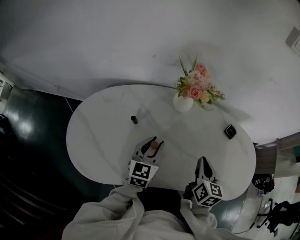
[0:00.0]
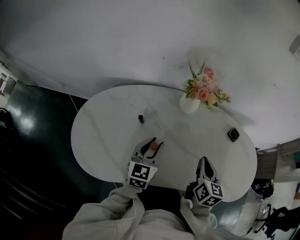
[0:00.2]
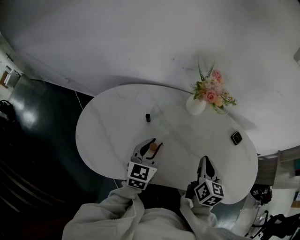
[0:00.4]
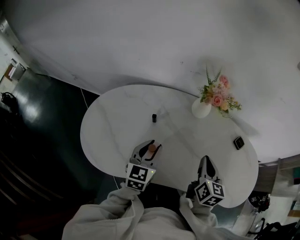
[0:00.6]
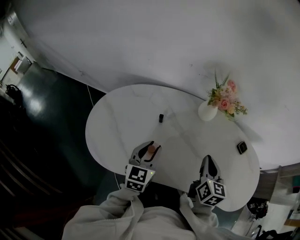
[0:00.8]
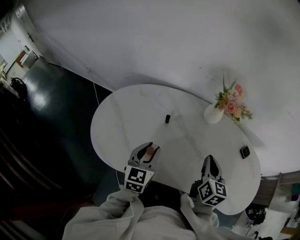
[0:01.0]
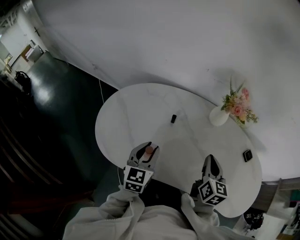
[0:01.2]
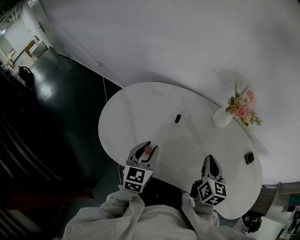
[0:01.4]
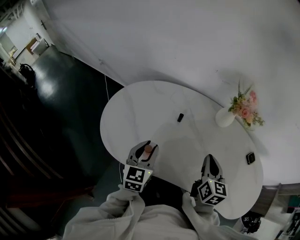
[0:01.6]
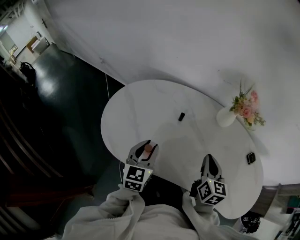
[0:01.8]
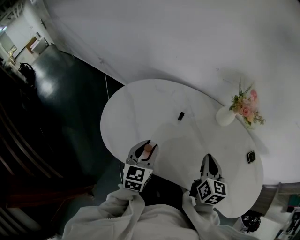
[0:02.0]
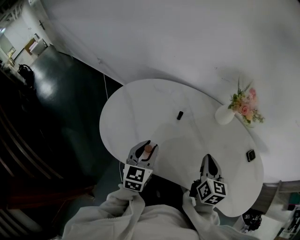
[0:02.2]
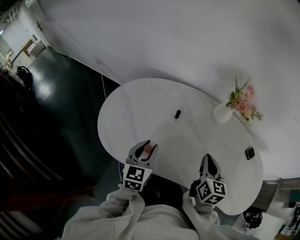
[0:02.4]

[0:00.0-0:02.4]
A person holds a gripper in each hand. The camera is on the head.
0:00.0 to 0:01.2: The left gripper heads to the left and backward, covering some 15 cm, and changes its angle by some 20 degrees, while the right gripper travels to the left by about 10 cm.
0:01.2 to 0:02.4: The grippers move only a little.

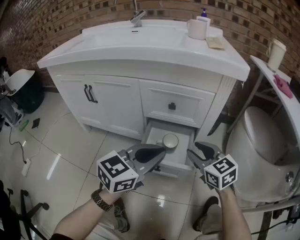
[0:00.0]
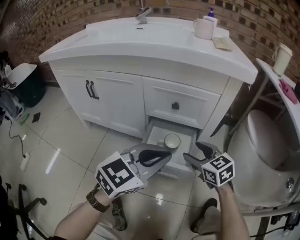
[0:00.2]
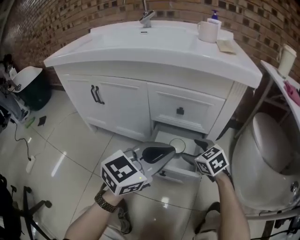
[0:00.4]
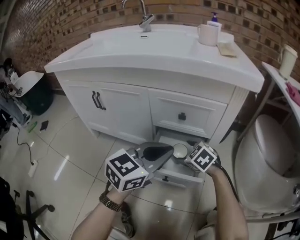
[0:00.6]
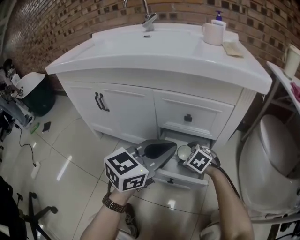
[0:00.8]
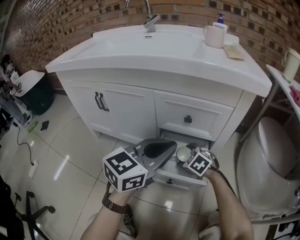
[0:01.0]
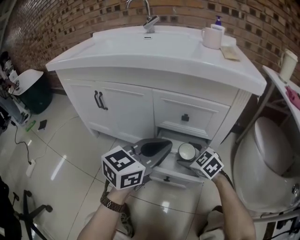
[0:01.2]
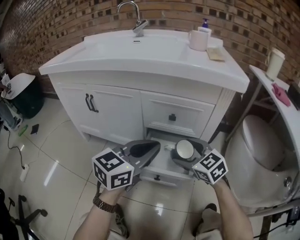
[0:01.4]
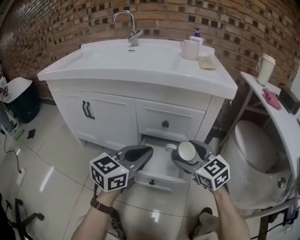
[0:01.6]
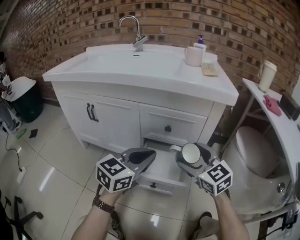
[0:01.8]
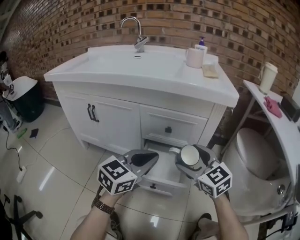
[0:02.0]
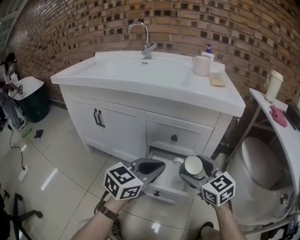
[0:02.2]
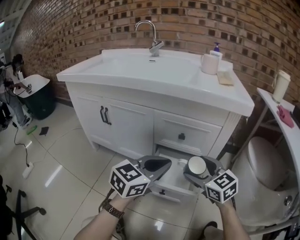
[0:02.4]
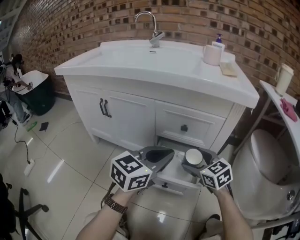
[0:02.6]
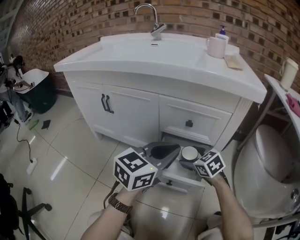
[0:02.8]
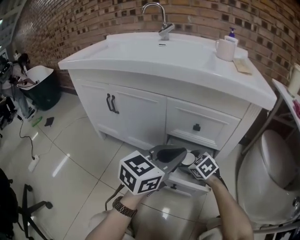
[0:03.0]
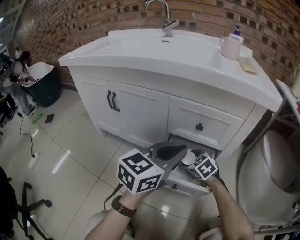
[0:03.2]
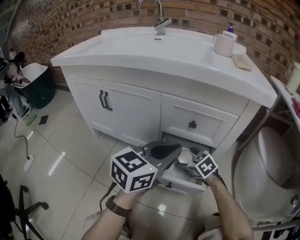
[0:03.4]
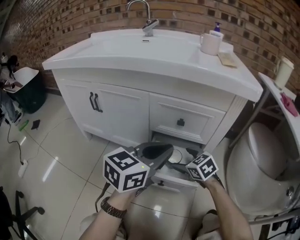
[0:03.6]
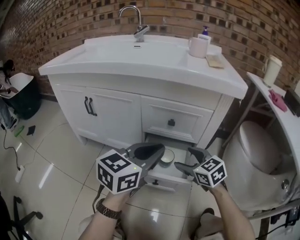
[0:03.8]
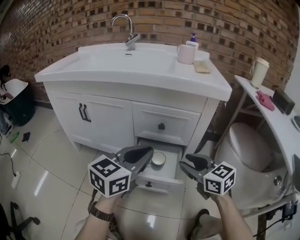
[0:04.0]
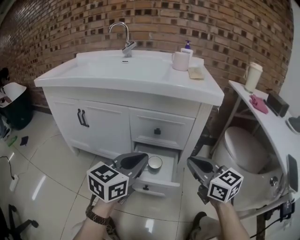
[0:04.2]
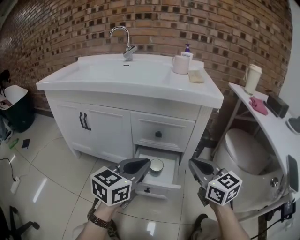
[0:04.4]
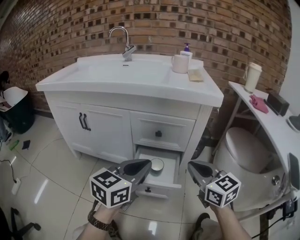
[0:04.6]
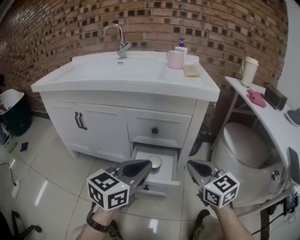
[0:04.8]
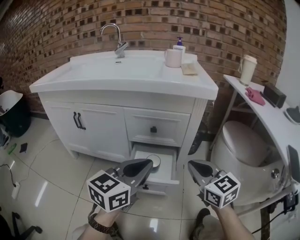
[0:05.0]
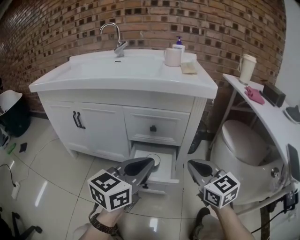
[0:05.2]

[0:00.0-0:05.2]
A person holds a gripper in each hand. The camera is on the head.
0:00.0 to 0:01.8: The right gripper goes downward and returns, approximately 15 cm each way, and opens its fingers, while the left gripper ends up some 5 cm from where it was.
0:01.8 to 0:03.4: The right gripper is displaced downward by some 20 cm, and angles its fingers downward, by some 30 degrees.
0:03.4 to 0:05.2: The left gripper moves backward, roughly 10 cm. The right gripper goes approximately 30 cm upward, to the right and backward, points its fingers about 30 degrees further upward, and closes.

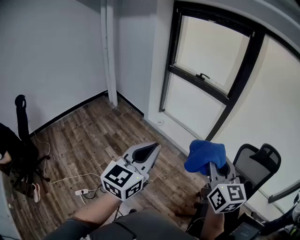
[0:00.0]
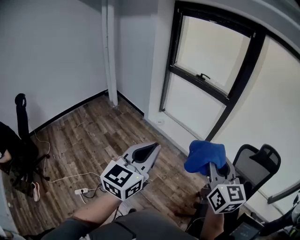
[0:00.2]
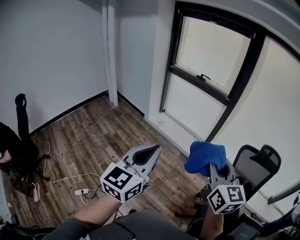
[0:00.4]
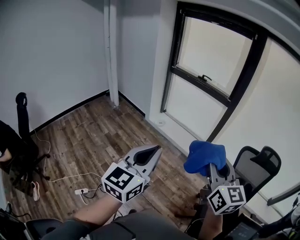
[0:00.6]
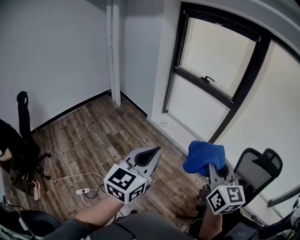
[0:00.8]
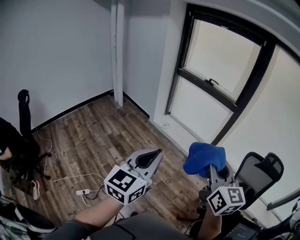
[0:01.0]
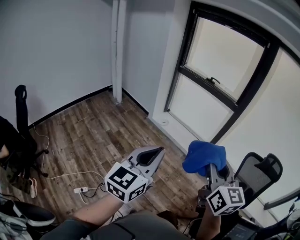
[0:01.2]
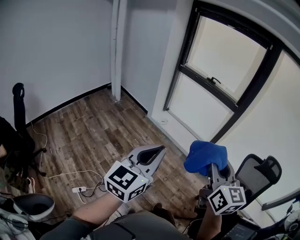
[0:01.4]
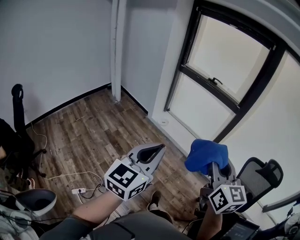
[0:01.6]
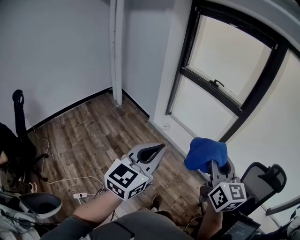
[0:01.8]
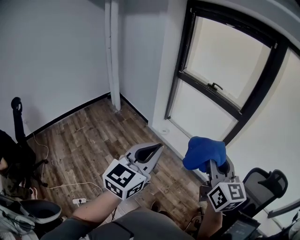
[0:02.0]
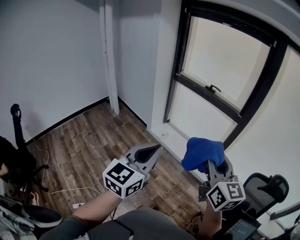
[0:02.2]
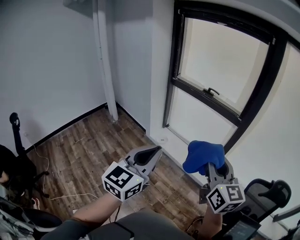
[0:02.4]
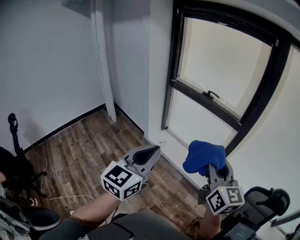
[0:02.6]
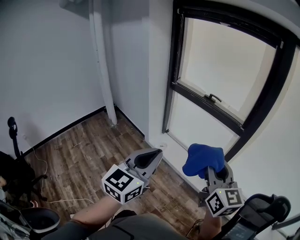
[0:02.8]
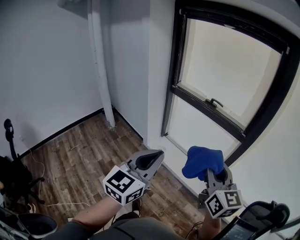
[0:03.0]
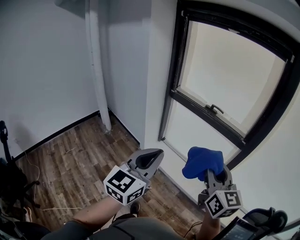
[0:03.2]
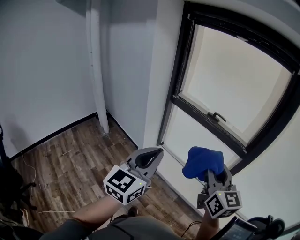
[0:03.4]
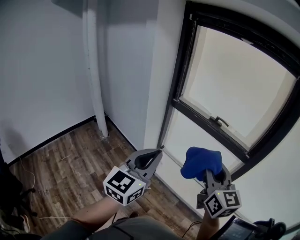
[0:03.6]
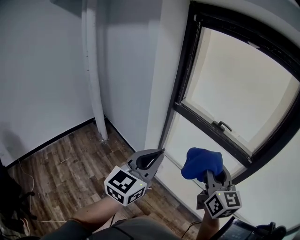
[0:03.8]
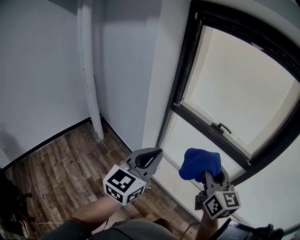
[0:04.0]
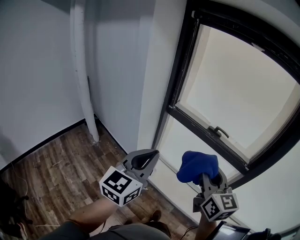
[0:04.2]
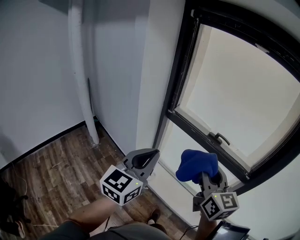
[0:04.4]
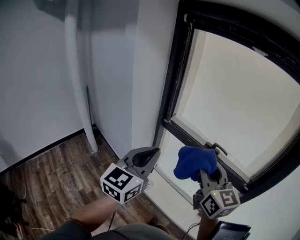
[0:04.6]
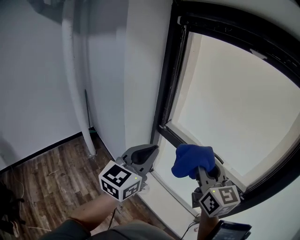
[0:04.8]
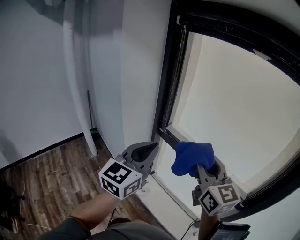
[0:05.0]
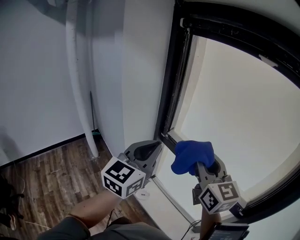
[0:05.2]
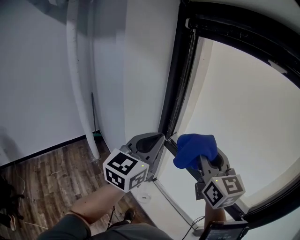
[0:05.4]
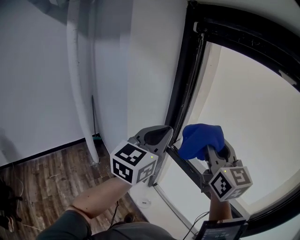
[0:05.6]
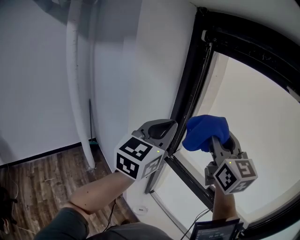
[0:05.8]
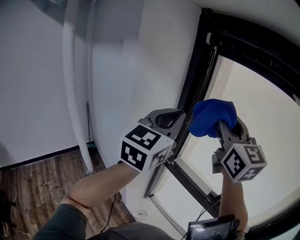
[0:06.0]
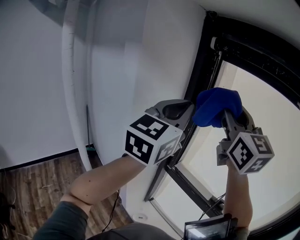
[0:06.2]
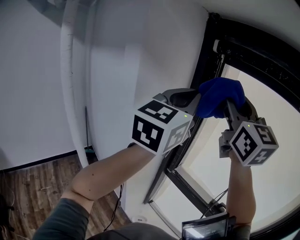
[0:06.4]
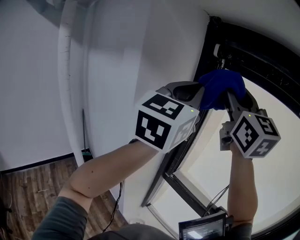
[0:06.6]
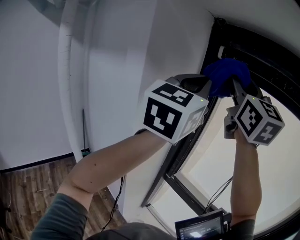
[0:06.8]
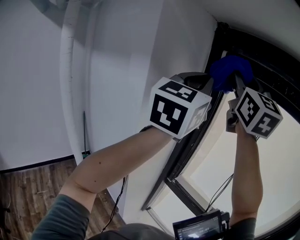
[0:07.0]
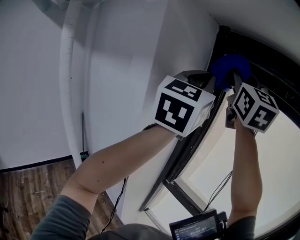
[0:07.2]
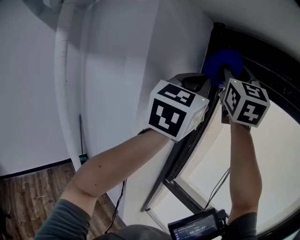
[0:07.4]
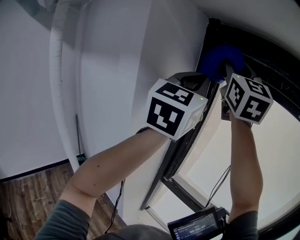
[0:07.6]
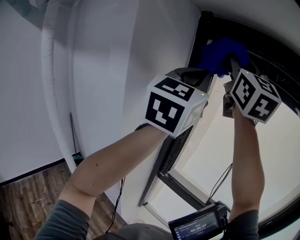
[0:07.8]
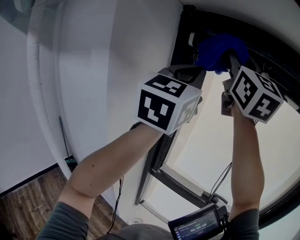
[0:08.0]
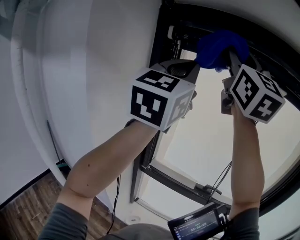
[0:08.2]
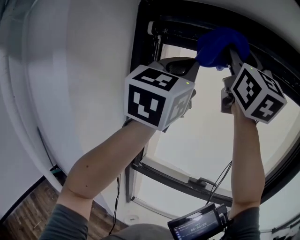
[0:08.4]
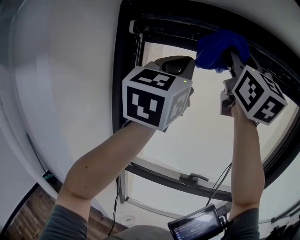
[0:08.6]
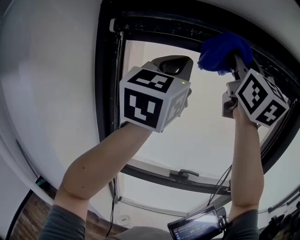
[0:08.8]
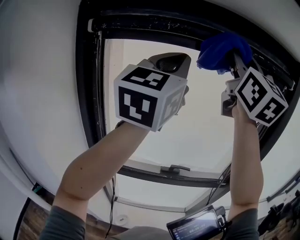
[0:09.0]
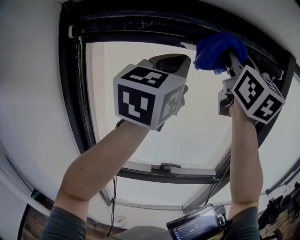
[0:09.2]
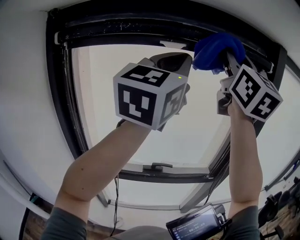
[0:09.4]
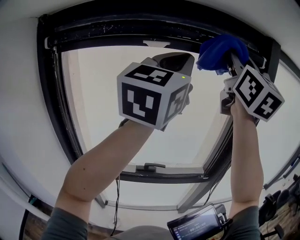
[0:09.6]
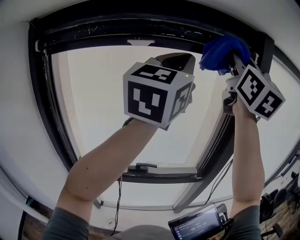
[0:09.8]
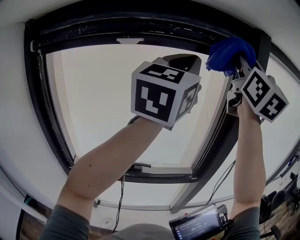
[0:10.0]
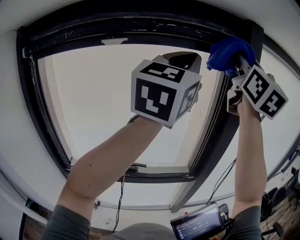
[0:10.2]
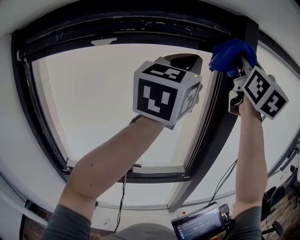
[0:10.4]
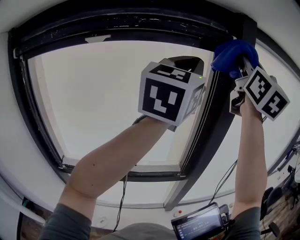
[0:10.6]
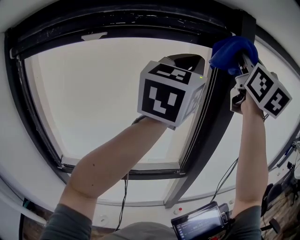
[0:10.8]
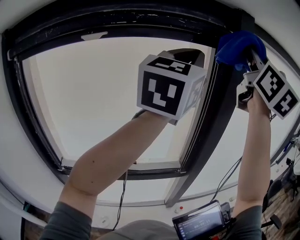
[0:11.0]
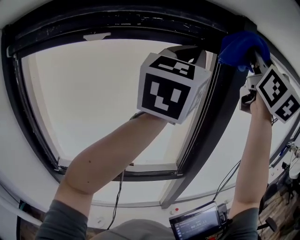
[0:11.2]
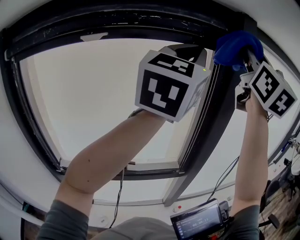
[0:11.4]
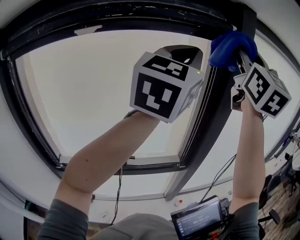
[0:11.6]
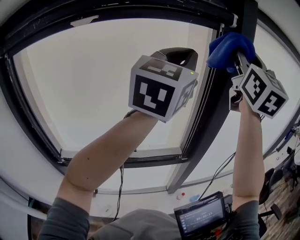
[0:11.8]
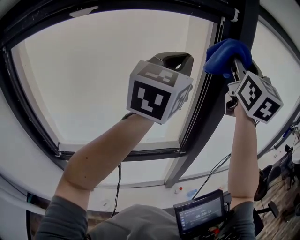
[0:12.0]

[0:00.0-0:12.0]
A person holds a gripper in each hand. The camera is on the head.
0:00.0 to 0:01.6: Both grippers move to the left and forward, approximately 10 cm.
0:01.6 to 0:03.0: Both grippers travel together forward, some 35 cm.
0:03.0 to 0:04.4: Both grippers travel together forward, approximately 35 cm.
0:04.4 to 0:06.0: The two grippers go approximately 40 cm forward and upward. The right gripper swivels about 20 degrees.
0:06.0 to 0:07.6: Both grippers move upward and forward, roughly 20 cm. The right gripper turns by some 30 degrees.
0:07.6 to 0:09.0: The right gripper moves roughly 35 cm, and swivels roughly 30 degrees; the left gripper ends up some 25 cm from where it was, and changes its angle by approximately 30 degrees.
0:09.0 to 0:10.4: Both grippers travel together to the right, approximately 35 cm.
0:10.4 to 0:12.0: Both grippers move downward, some 10 cm.

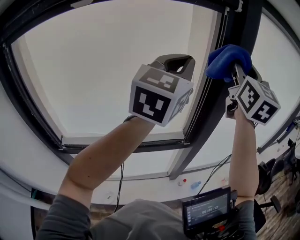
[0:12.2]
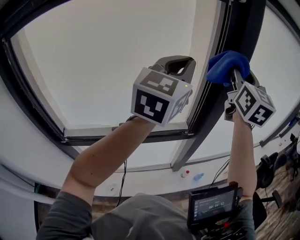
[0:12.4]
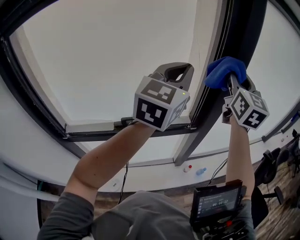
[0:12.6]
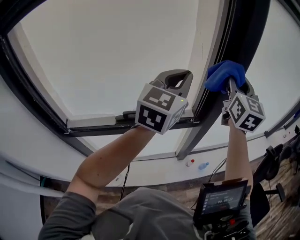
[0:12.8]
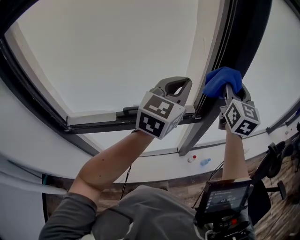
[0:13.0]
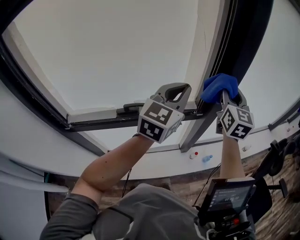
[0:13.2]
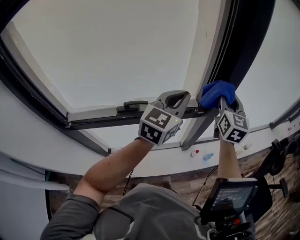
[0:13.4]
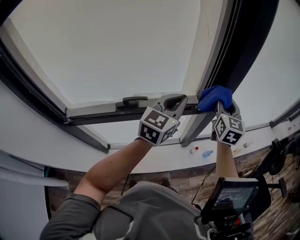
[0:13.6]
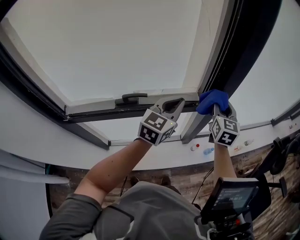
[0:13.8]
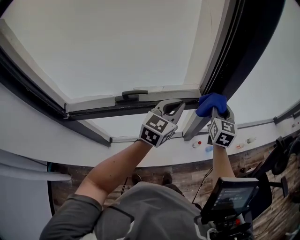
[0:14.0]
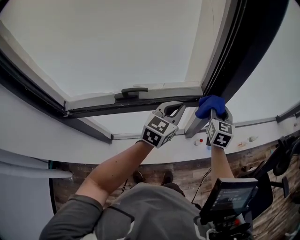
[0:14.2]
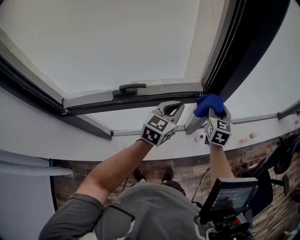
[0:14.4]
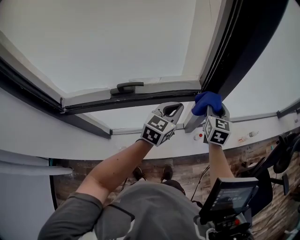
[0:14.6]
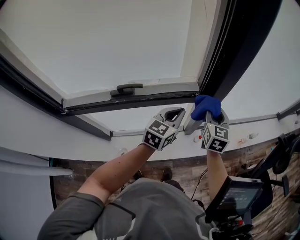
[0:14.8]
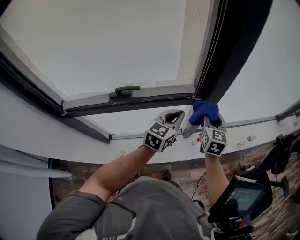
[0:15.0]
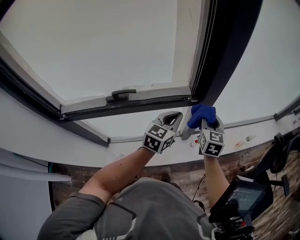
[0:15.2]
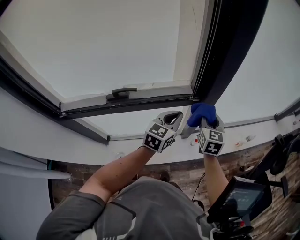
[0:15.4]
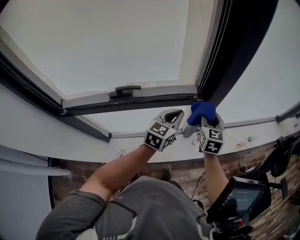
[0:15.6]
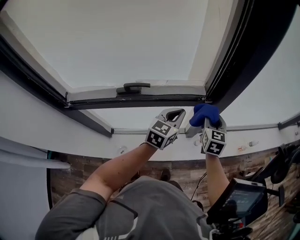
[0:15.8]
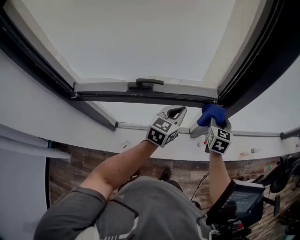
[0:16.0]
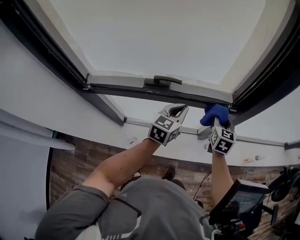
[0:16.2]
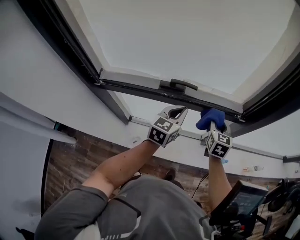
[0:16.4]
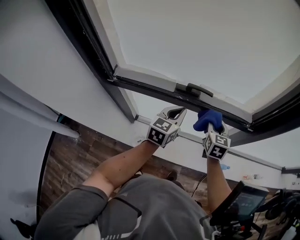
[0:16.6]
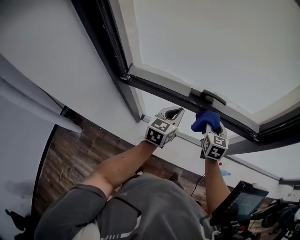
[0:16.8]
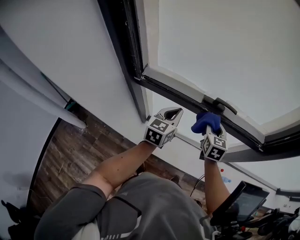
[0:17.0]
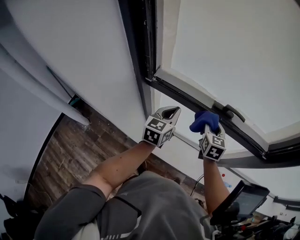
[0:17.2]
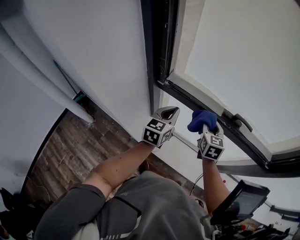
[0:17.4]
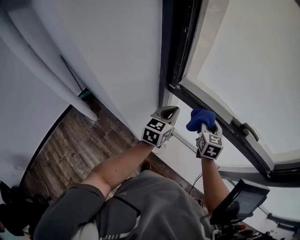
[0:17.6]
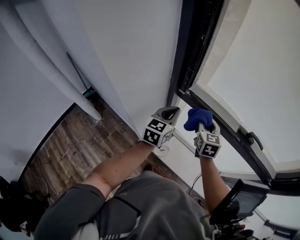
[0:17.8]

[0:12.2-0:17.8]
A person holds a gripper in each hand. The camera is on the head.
0:12.2 to 0:13.6: The grippers both shift downward by about 35 cm. The left gripper swivels about 20 degrees; the right gripper changes its angle by about 30 degrees.
0:13.6 to 0:15.0: The grippers both shift downward by approximately 15 cm.
0:15.0 to 0:16.4: Both grippers travel together to the left, approximately 20 cm.
0:16.4 to 0:17.8: The pair of grippers is taken some 50 cm. The left gripper turns by about 30 degrees. The right gripper turns by roughly 30 degrees.
